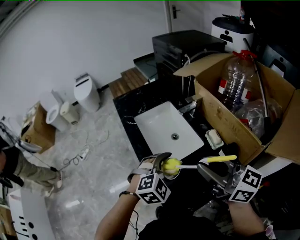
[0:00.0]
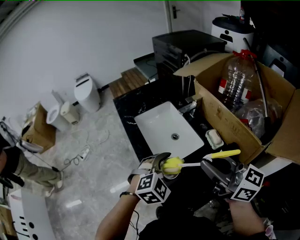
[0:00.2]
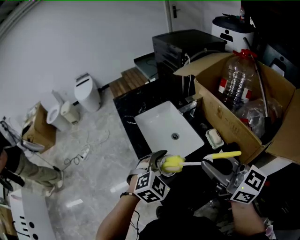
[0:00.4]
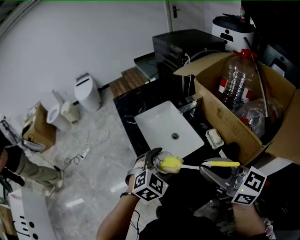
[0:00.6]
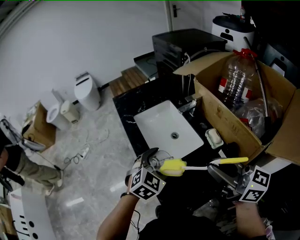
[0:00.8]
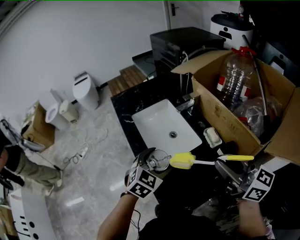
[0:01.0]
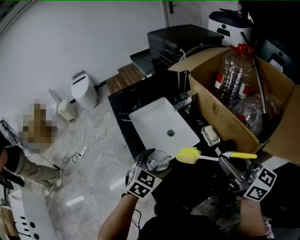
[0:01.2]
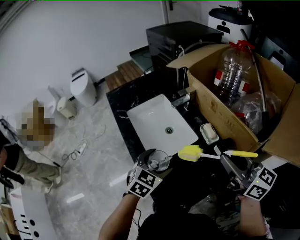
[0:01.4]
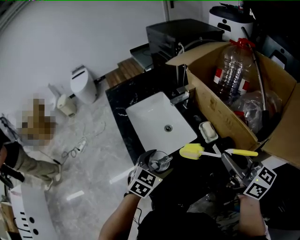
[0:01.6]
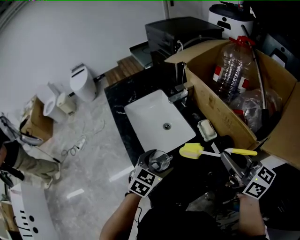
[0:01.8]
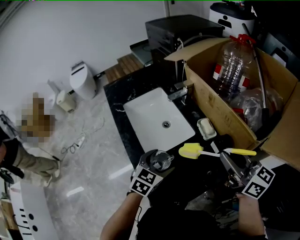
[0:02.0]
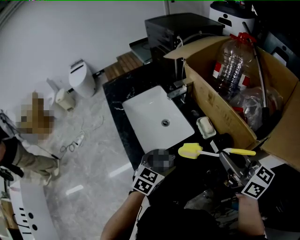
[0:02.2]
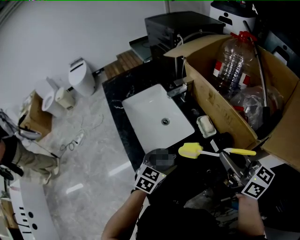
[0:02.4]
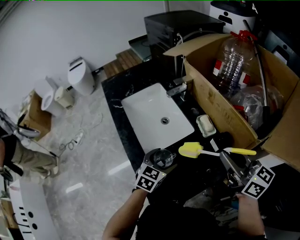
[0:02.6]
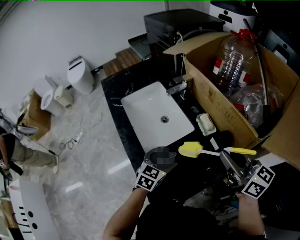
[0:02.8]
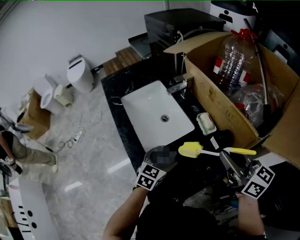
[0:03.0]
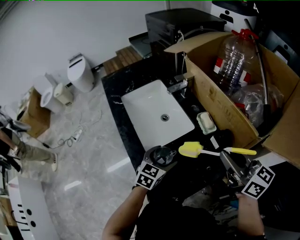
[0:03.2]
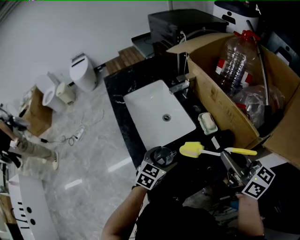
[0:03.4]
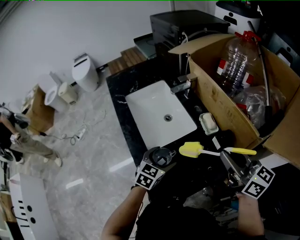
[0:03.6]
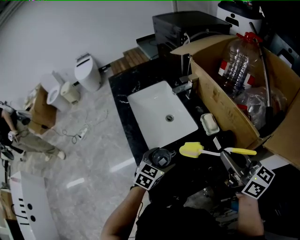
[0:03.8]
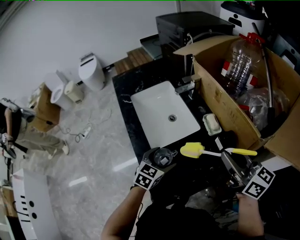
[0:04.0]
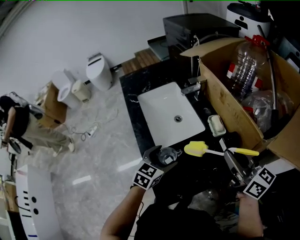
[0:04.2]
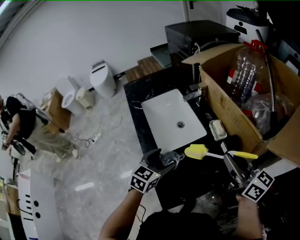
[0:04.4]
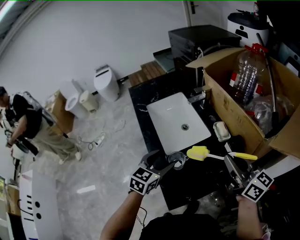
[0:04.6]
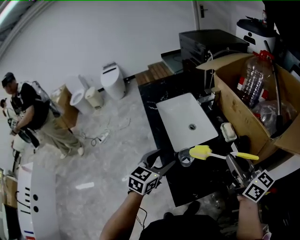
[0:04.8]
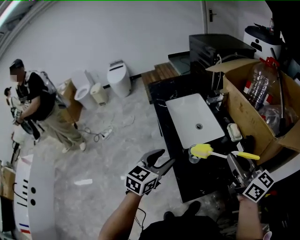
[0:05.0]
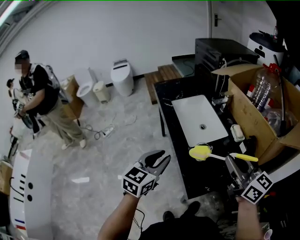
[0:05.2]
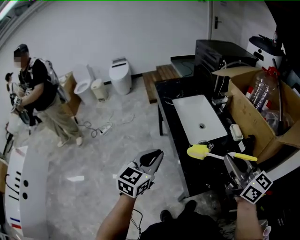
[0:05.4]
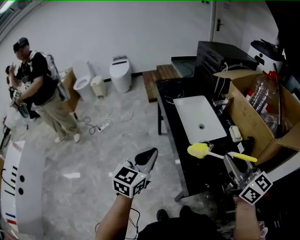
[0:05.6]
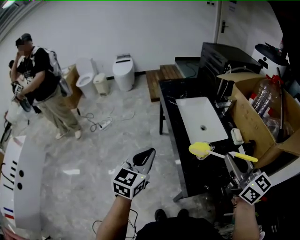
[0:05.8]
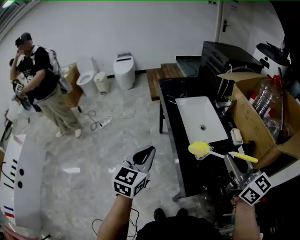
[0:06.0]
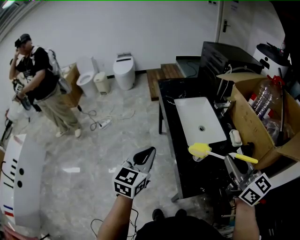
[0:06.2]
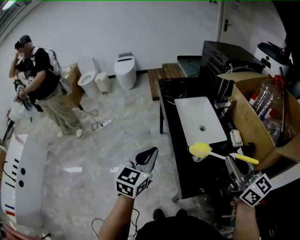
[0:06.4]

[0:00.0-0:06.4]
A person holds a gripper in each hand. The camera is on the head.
0:00.0 to 0:01.6: The left gripper changes its angle by about 30 degrees; the right gripper is displaced to the right by some 15 cm.
0:01.6 to 0:03.2: The left gripper heads downward, covering about 10 cm.
0:03.2 to 0:04.8: The left gripper moves to the left, upward and backward, some 20 cm. The right gripper goes roughly 5 cm to the left.
0:04.8 to 0:06.4: The left gripper moves to the left, upward and backward, about 15 cm, and closes up. Meanwhile the right gripper goes approximately 10 cm to the left.

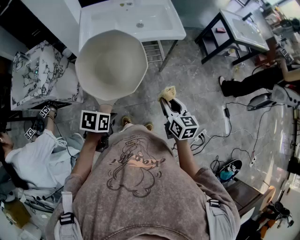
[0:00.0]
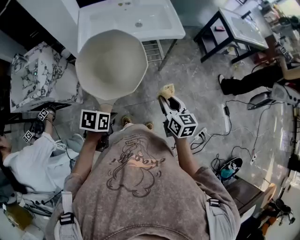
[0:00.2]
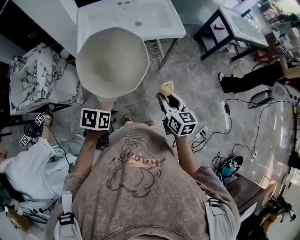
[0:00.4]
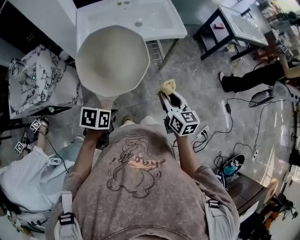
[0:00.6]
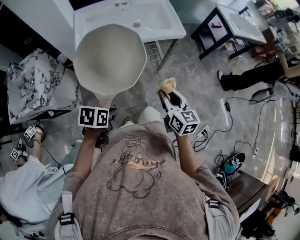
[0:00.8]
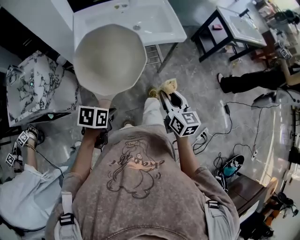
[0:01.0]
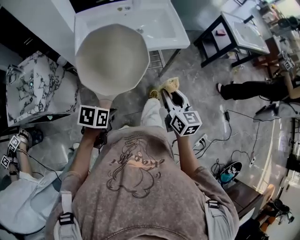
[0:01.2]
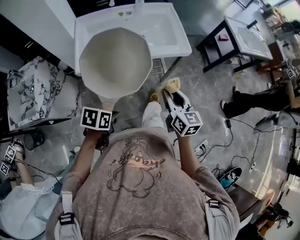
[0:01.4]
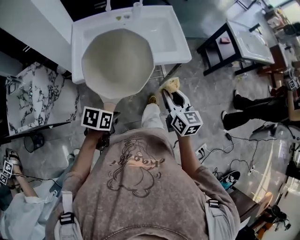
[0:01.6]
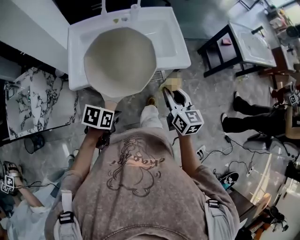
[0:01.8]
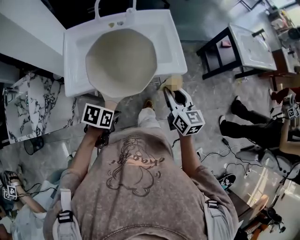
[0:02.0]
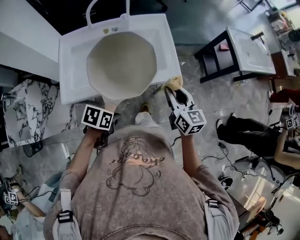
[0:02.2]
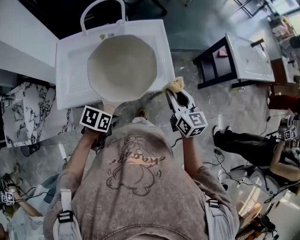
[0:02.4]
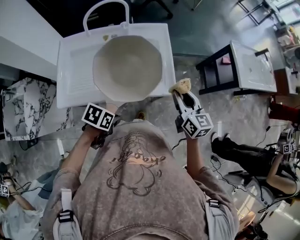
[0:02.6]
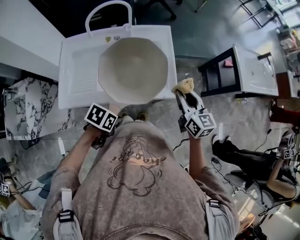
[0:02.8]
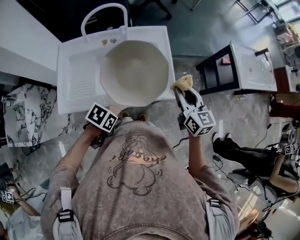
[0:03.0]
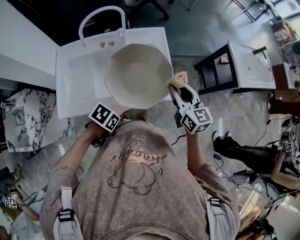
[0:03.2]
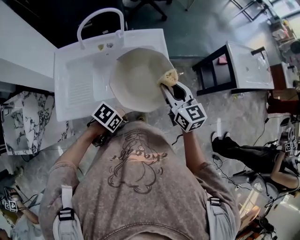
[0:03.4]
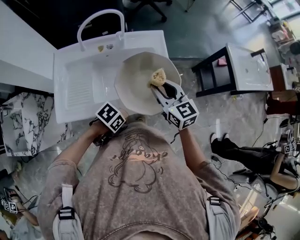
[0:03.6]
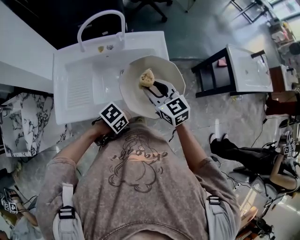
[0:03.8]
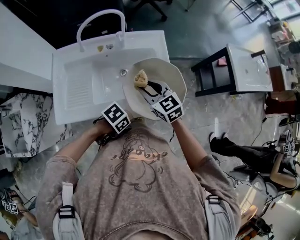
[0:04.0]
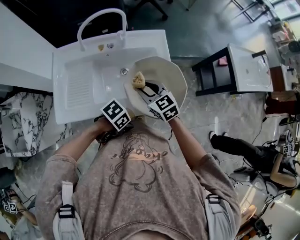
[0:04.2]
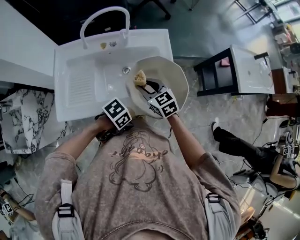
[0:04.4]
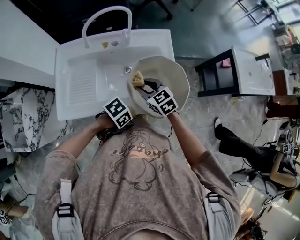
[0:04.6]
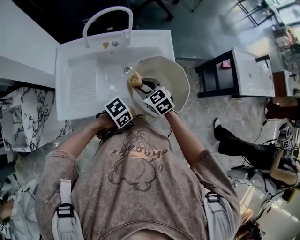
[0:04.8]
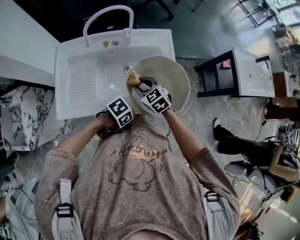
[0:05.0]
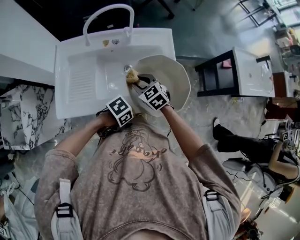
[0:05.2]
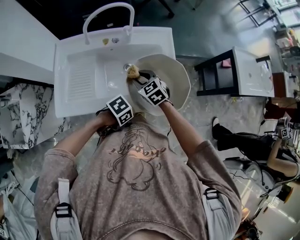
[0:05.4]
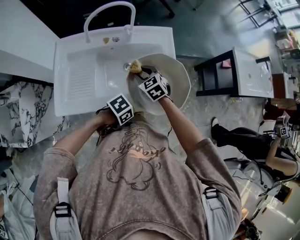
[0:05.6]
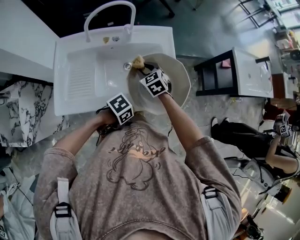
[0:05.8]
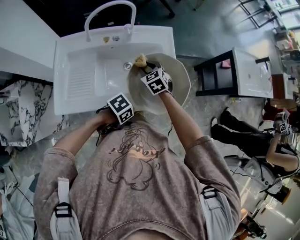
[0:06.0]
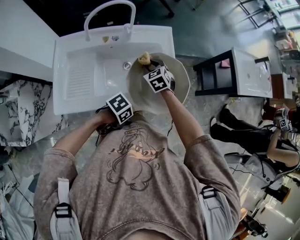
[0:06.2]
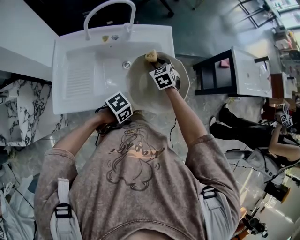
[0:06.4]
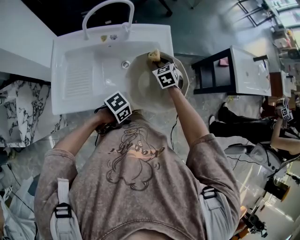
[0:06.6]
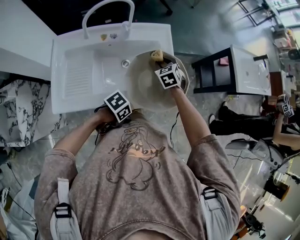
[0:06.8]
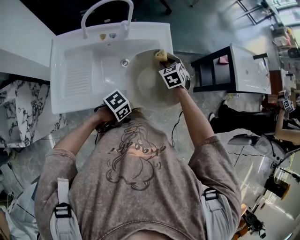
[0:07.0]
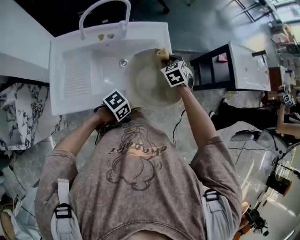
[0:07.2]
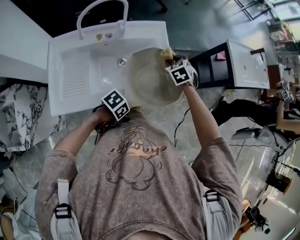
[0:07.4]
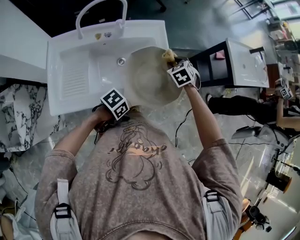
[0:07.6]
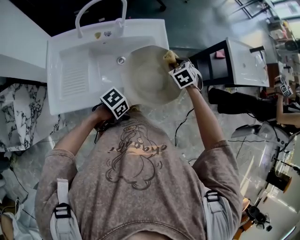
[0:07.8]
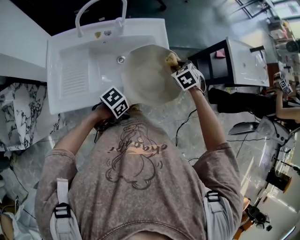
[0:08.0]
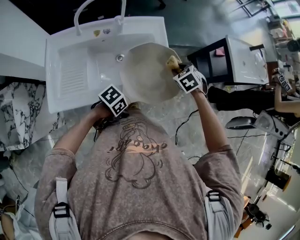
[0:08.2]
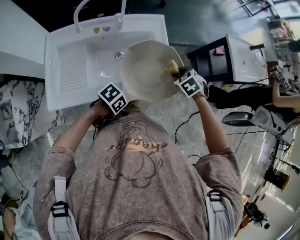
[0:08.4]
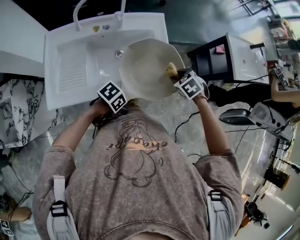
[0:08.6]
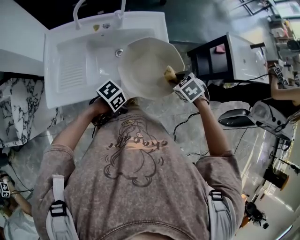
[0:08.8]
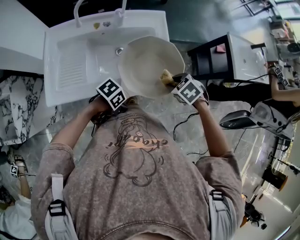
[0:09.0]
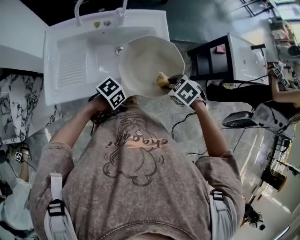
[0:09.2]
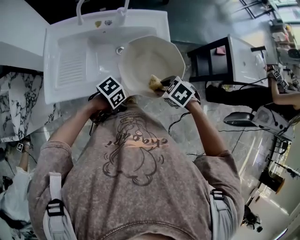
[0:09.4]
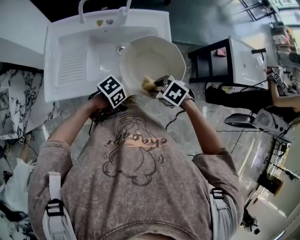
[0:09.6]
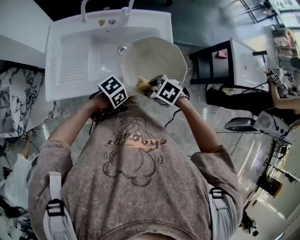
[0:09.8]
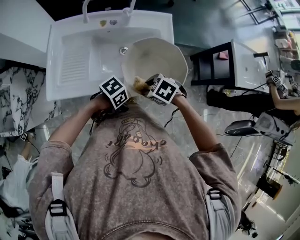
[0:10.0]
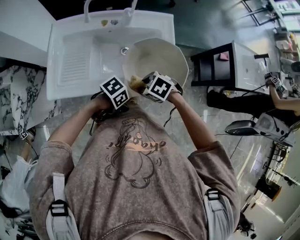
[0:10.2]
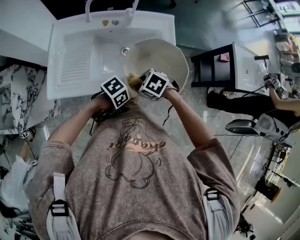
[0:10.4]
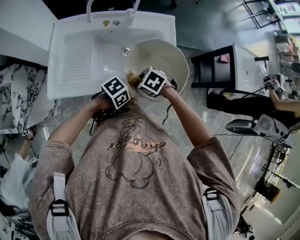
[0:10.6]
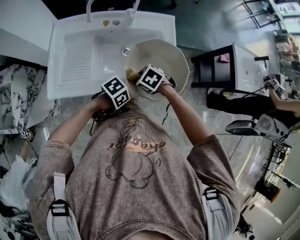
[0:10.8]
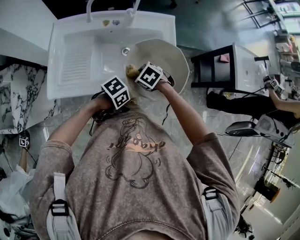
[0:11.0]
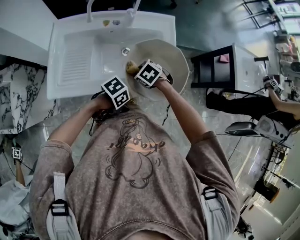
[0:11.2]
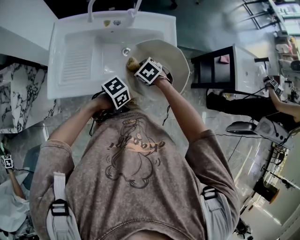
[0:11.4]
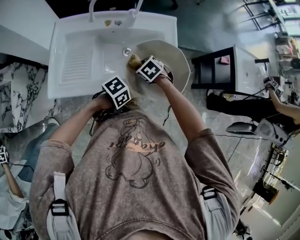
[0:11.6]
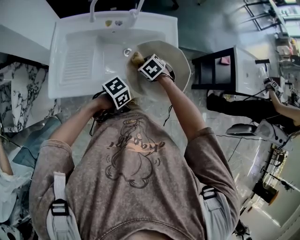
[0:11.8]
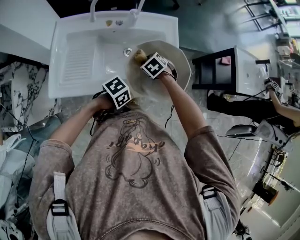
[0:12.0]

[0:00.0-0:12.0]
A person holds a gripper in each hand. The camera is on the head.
0:00.0 to 0:01.6: The right gripper moves some 25 cm.
0:01.6 to 0:03.0: The right gripper moves approximately 30 cm.
0:03.0 to 0:04.4: The right gripper ends up some 20 cm from where it was, and changes its angle by approximately 30 degrees.
0:04.4 to 0:06.0: The right gripper changes place by about 10 cm.
0:06.0 to 0:07.6: The right gripper shifts by about 15 cm, and rotates approximately 20 degrees.
0:07.6 to 0:09.0: The right gripper moves roughly 15 cm, and turns by about 30 degrees.
0:09.0 to 0:10.4: The right gripper changes place by about 15 cm.
0:10.4 to 0:12.0: The right gripper shifts by roughly 15 cm, and changes its angle by about 20 degrees.

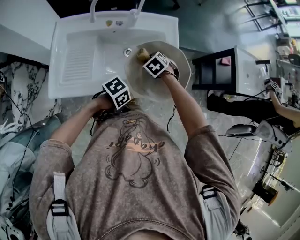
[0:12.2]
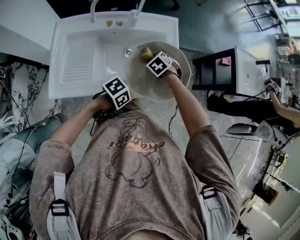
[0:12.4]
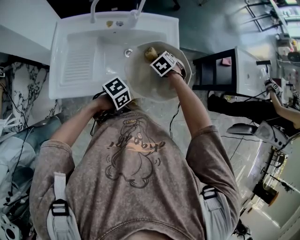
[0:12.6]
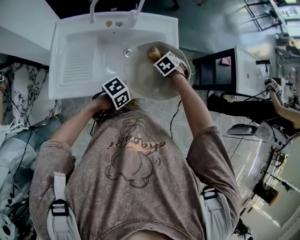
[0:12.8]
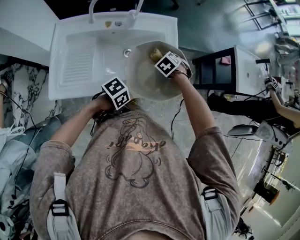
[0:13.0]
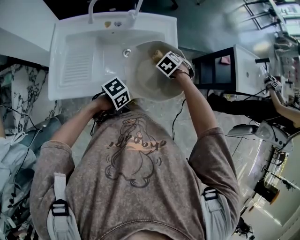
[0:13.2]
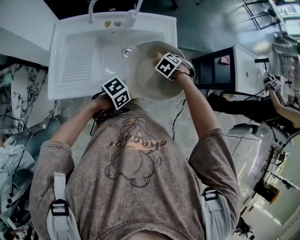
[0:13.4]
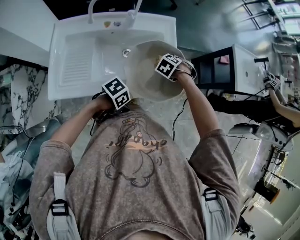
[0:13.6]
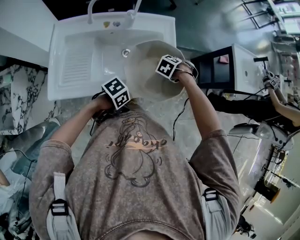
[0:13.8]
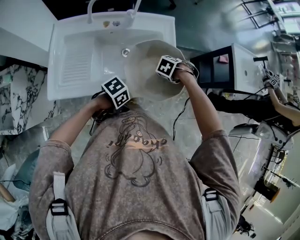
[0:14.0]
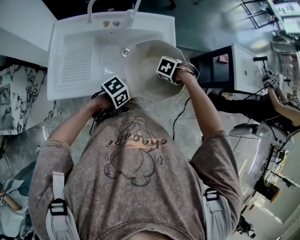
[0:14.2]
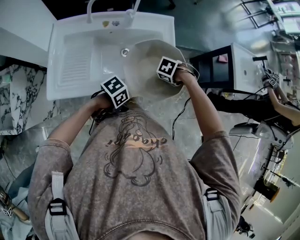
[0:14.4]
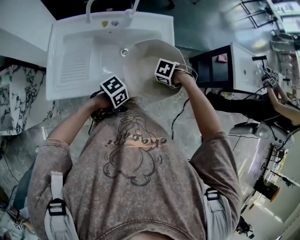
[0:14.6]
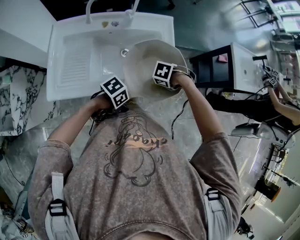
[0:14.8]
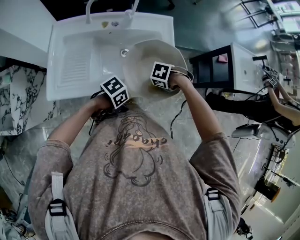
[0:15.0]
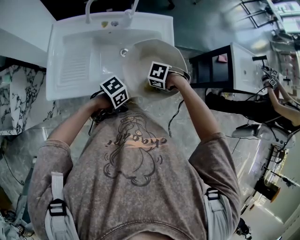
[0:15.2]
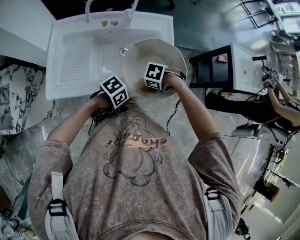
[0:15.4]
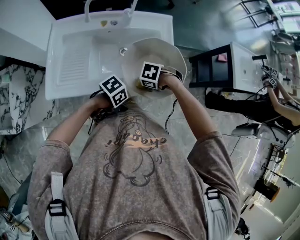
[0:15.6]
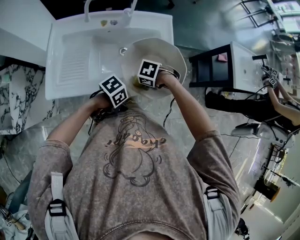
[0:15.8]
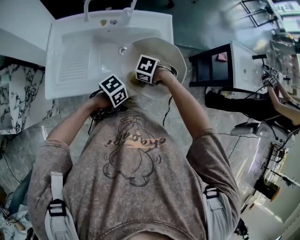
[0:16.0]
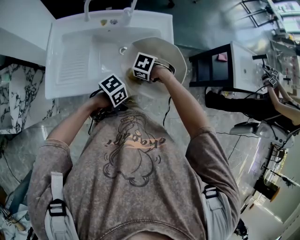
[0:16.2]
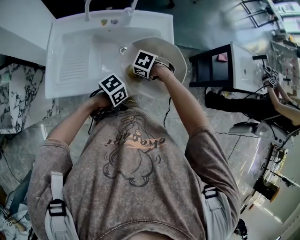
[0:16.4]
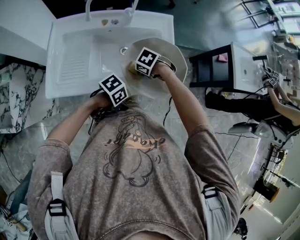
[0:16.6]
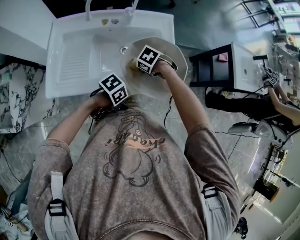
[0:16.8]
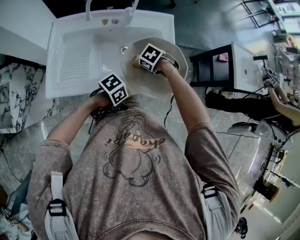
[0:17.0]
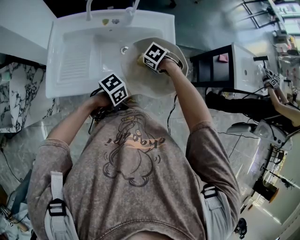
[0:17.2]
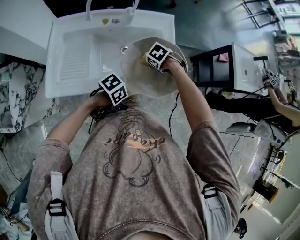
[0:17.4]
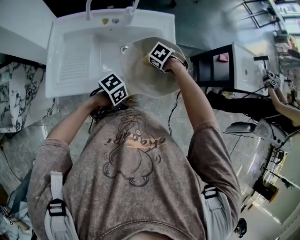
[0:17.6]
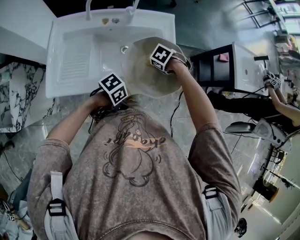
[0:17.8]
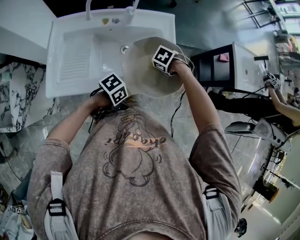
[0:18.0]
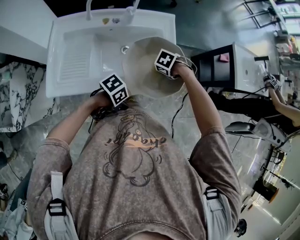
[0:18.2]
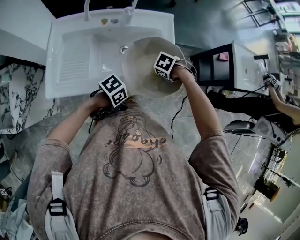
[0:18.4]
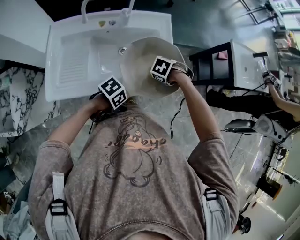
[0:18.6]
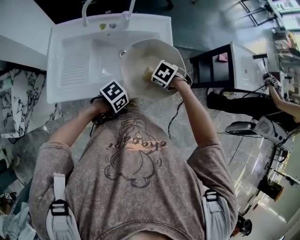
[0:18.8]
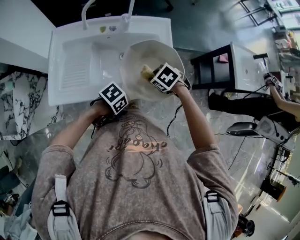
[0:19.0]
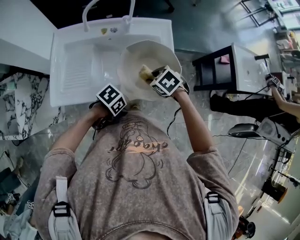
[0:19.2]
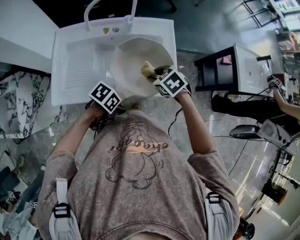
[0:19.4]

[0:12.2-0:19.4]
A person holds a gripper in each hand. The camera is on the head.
0:12.2 to 0:13.6: The right gripper changes place by roughly 10 cm, and changes its angle by roughly 20 degrees.
0:13.6 to 0:15.0: The right gripper moves about 10 cm, and changes its angle by approximately 30 degrees.
0:15.0 to 0:16.6: The right gripper changes place by some 10 cm.
0:16.6 to 0:18.0: The right gripper ends up approximately 10 cm from where it was.
0:18.0 to 0:19.4: The right gripper shifts about 10 cm upward, and swivels about 30 degrees.
